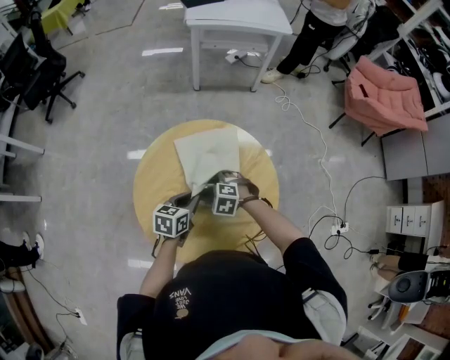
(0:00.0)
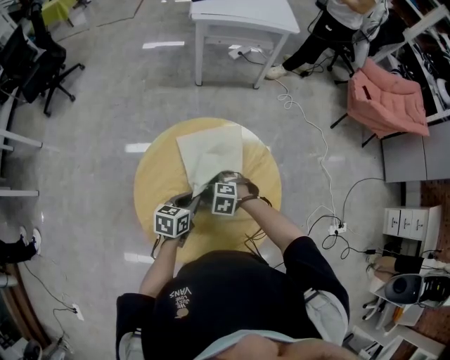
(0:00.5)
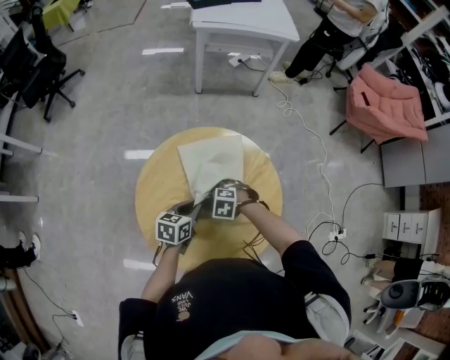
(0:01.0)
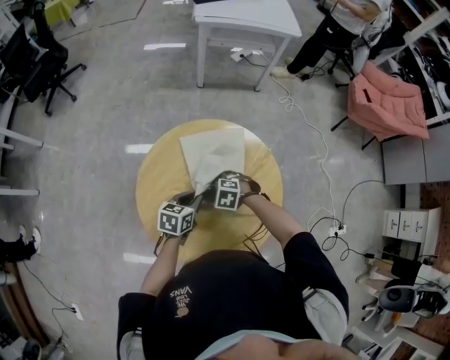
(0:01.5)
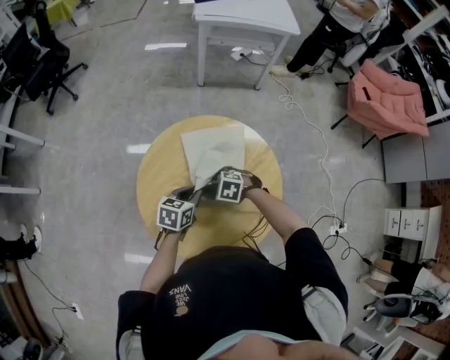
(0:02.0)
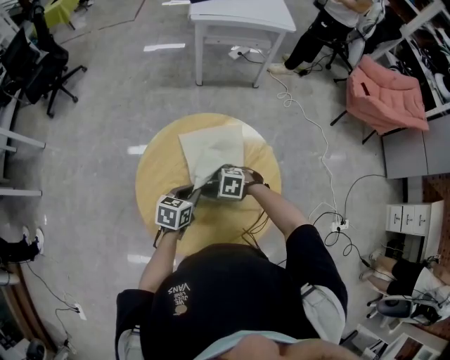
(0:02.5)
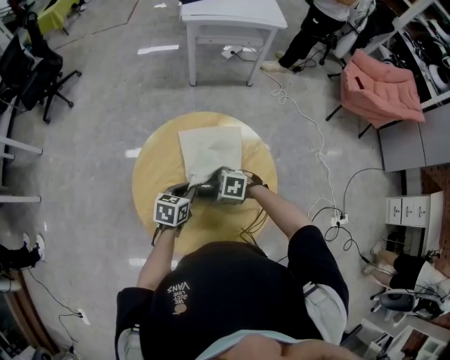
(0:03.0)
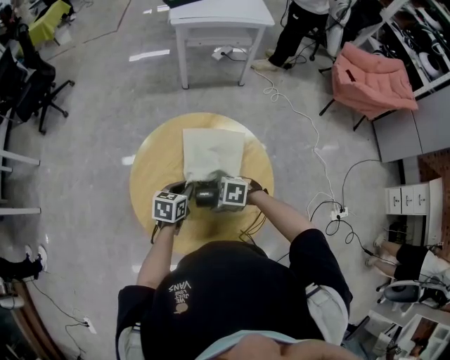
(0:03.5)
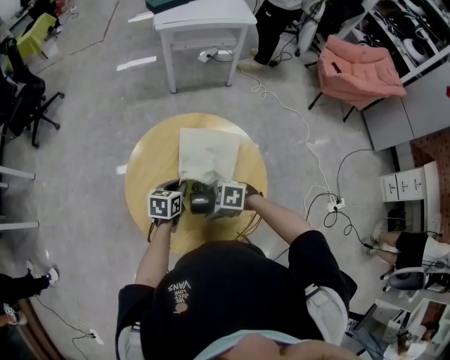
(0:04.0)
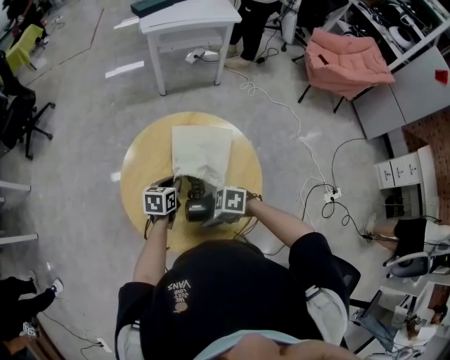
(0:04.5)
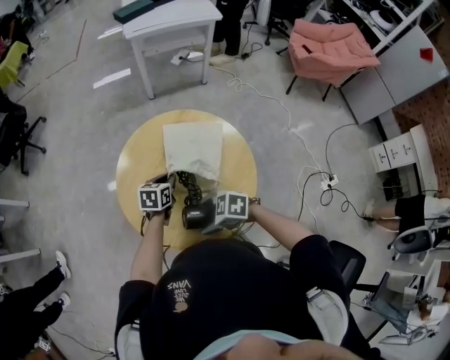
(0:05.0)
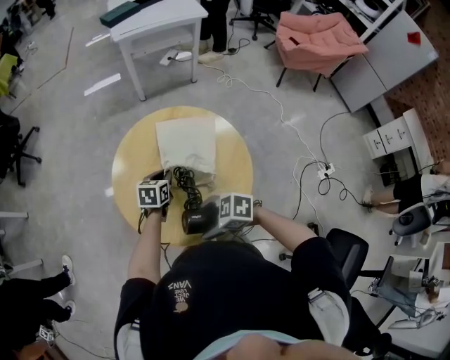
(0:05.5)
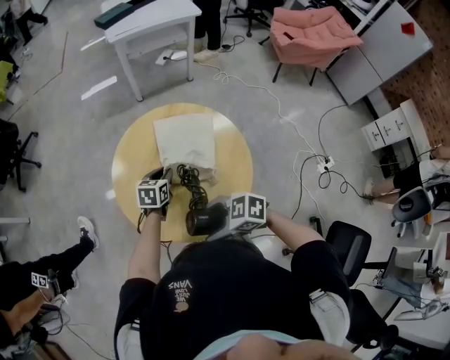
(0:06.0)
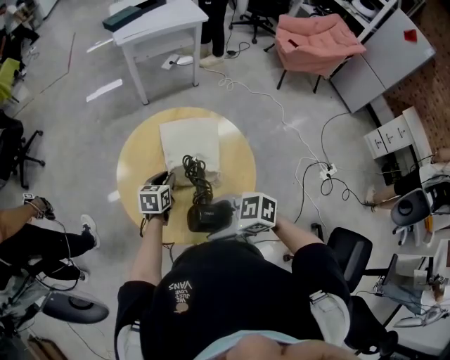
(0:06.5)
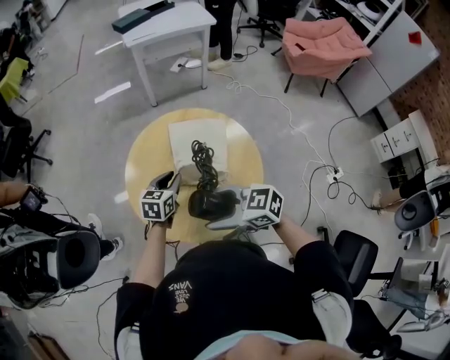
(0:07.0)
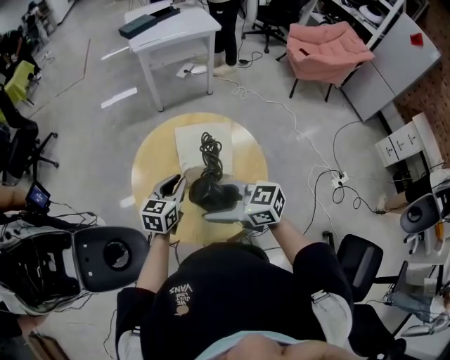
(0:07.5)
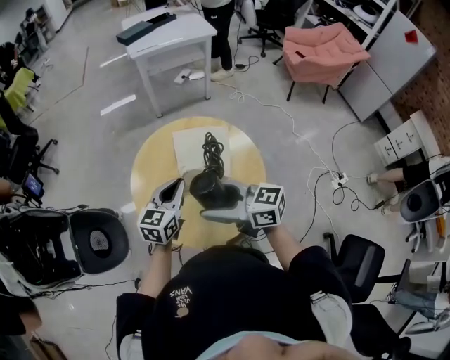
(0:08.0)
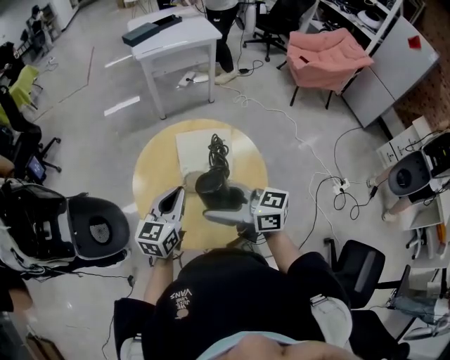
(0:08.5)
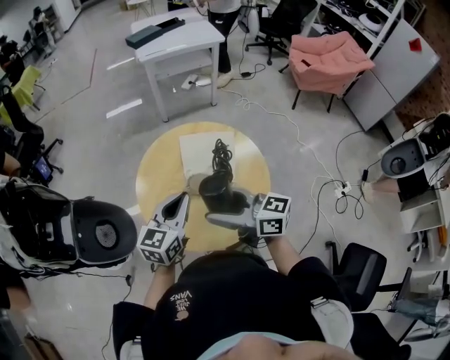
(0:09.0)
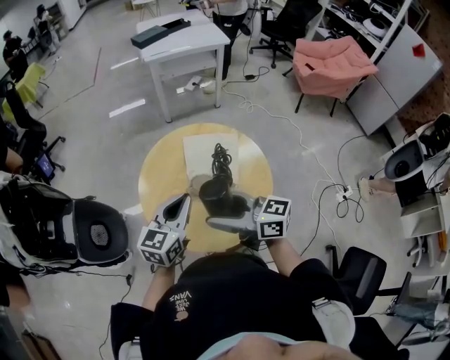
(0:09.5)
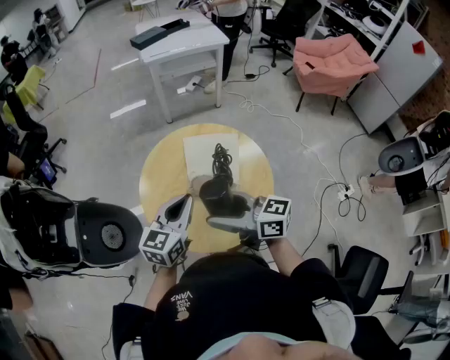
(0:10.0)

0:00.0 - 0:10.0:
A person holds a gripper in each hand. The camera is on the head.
0:00.0 - 0:02.0: The grippers move only a little.
0:02.0 - 0:04.0: The right gripper moves about 15 cm.
0:04.0 - 0:06.0: The right gripper shifts by some 20 cm, and changes its angle by about 30 degrees.
0:06.0 - 0:08.0: The grippers both shift upward by about 15 cm. The right gripper rotates roughly 40 degrees. The left gripper rotates some 30 degrees.
0:08.0 - 0:10.0: The left gripper changes place by roughly 5 cm.

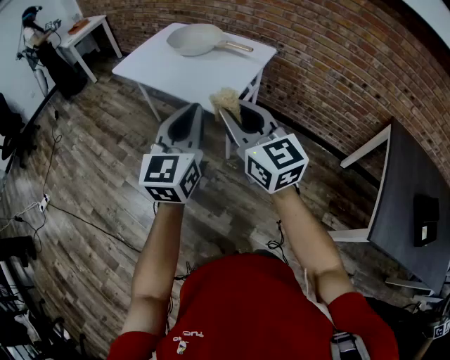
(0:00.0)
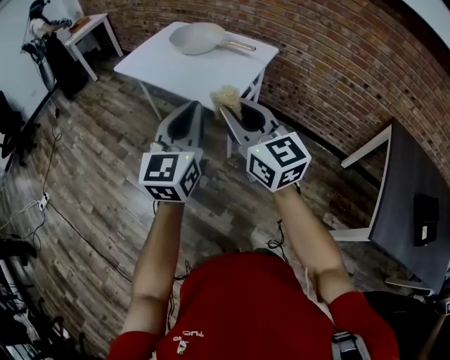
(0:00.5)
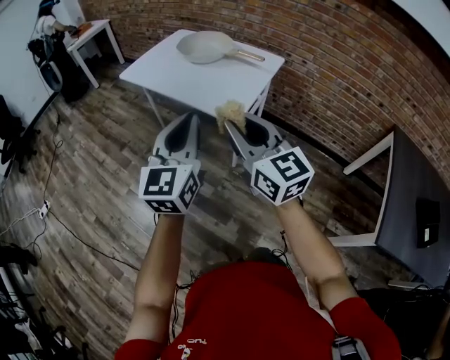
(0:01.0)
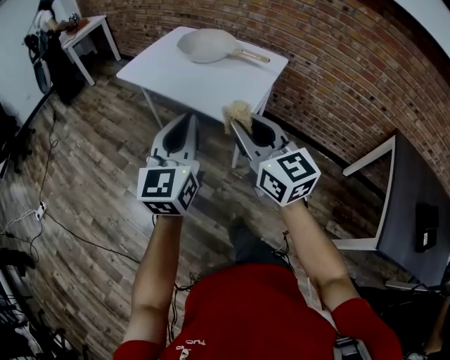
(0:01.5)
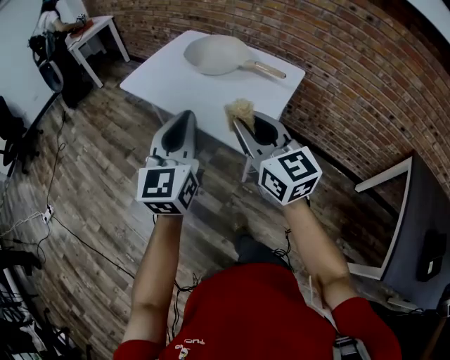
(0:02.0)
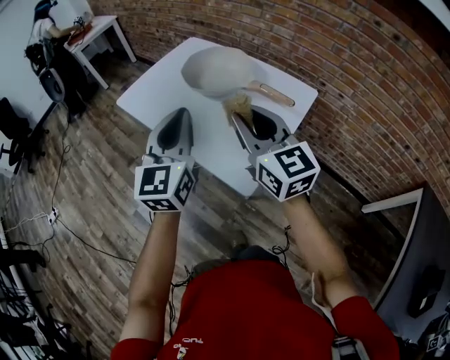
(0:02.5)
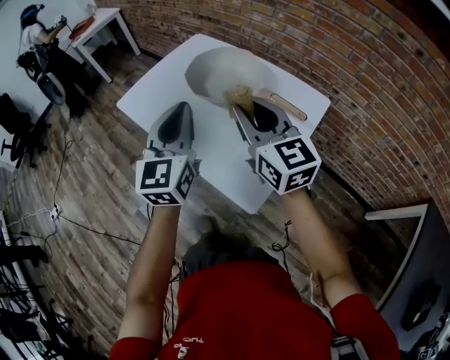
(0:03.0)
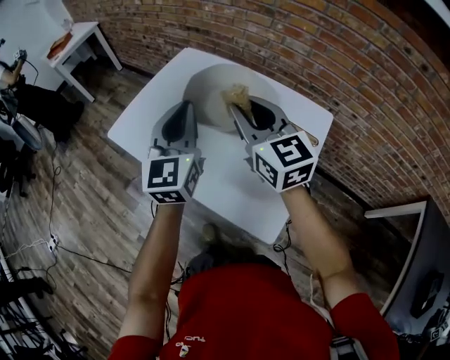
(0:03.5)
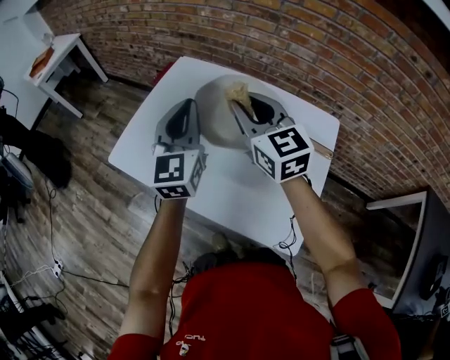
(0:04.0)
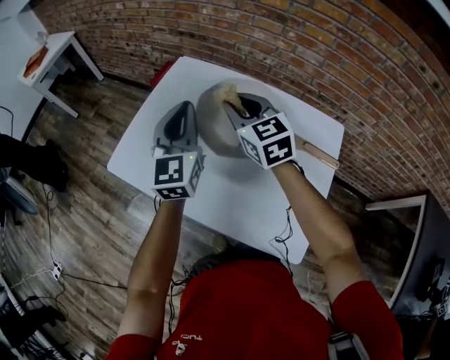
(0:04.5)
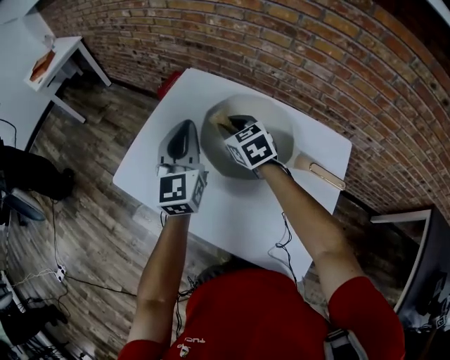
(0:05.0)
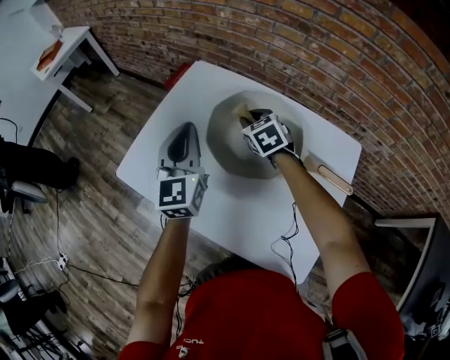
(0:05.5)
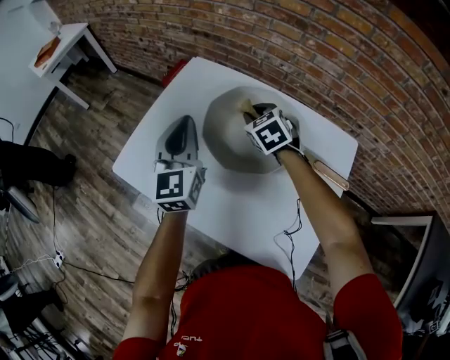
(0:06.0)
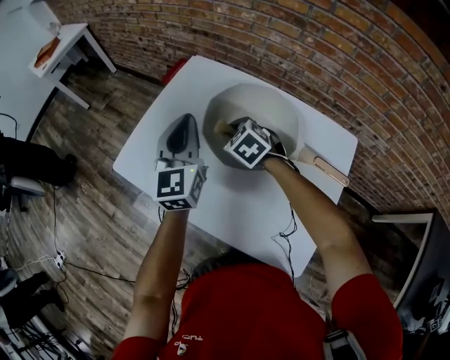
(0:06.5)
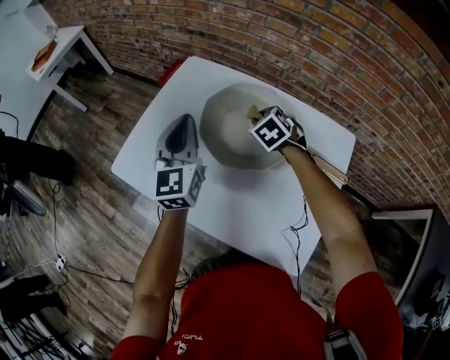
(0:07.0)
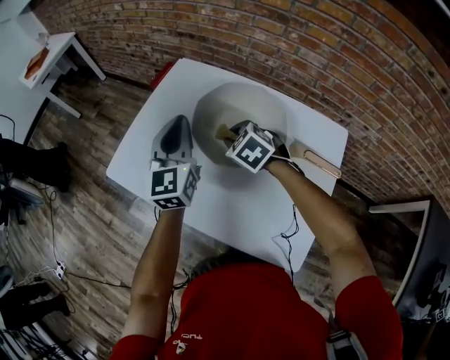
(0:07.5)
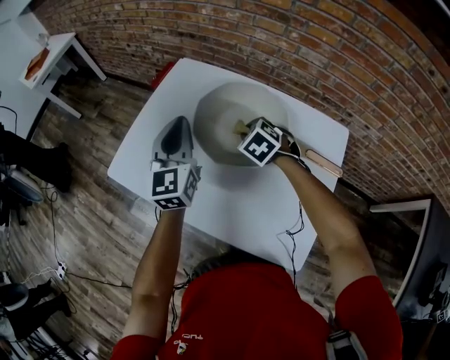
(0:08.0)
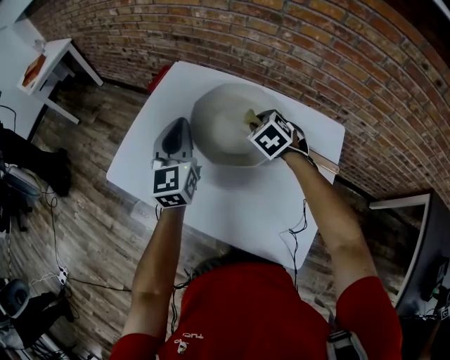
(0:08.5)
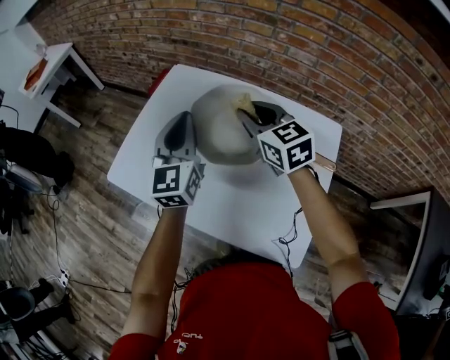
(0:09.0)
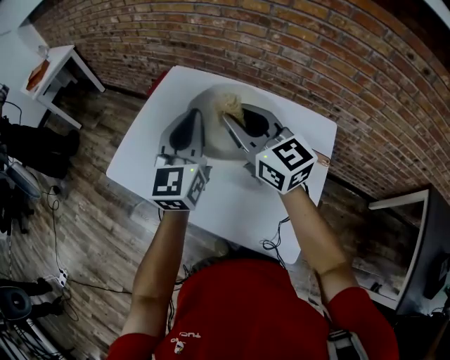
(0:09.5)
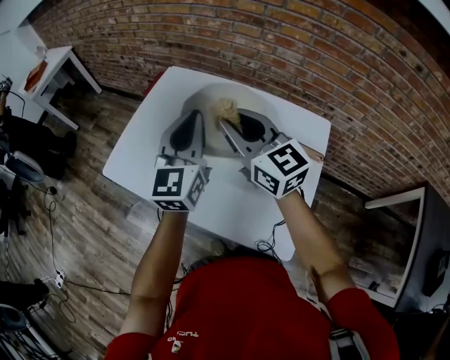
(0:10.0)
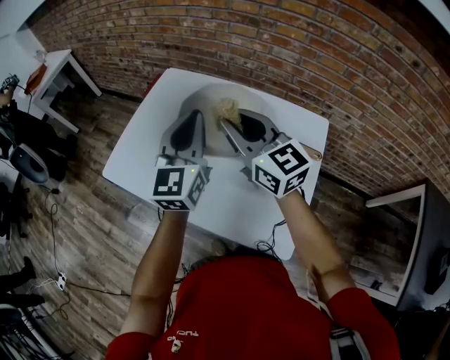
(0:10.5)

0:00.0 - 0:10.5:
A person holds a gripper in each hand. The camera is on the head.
0:00.0 - 0:02.0: The right gripper moves forward, approximately 20 cm. Meanwhile the left gripper shifts roughly 20 cm forward and to the left.
0:02.0 - 0:04.0: Both grippers are carried forward, approximately 50 cm.
0:04.0 - 0:06.5: The right gripper goes roughly 25 cm downward and forward, and tips its fingers downward by roughly 40 degrees; the left gripper shifts some 10 cm forward and downward.
0:06.5 - 0:08.5: The right gripper moves left and right over approximately 15 cm, changing direction 2 times.
0:08.5 - 0:10.5: The left gripper shifts about 15 cm backward, upward and to the right. The right gripper is displaced upward and backward by some 25 cm, and points its fingers about 50 degrees further upward.

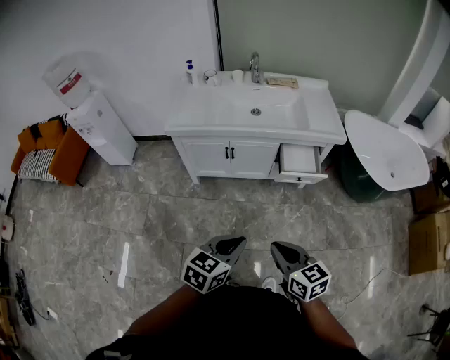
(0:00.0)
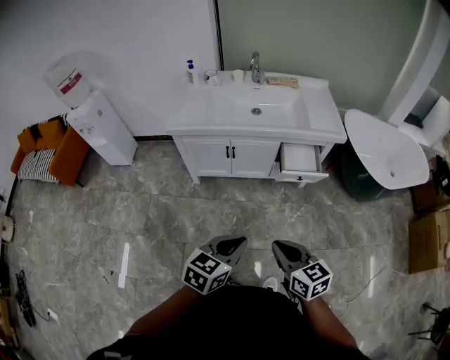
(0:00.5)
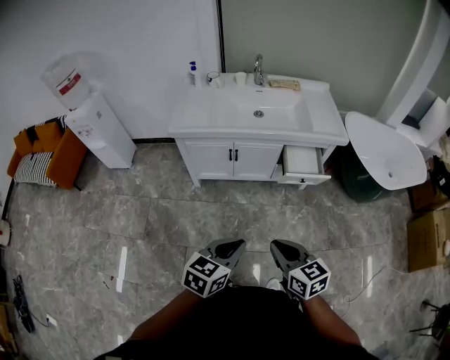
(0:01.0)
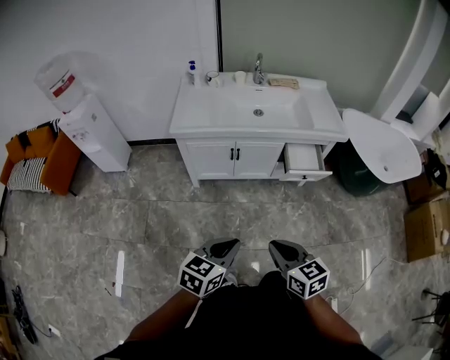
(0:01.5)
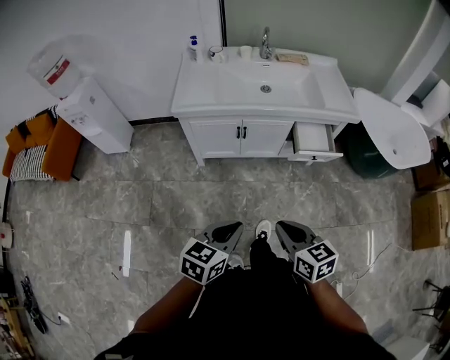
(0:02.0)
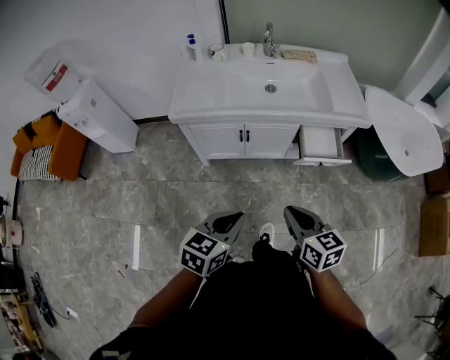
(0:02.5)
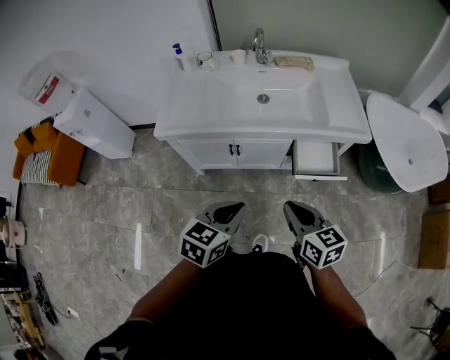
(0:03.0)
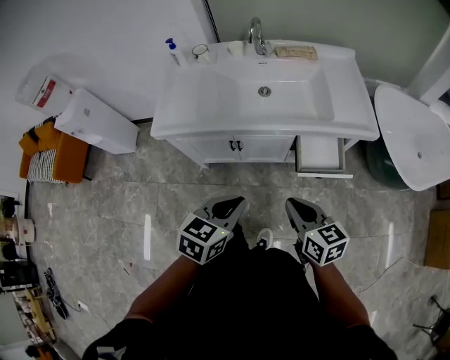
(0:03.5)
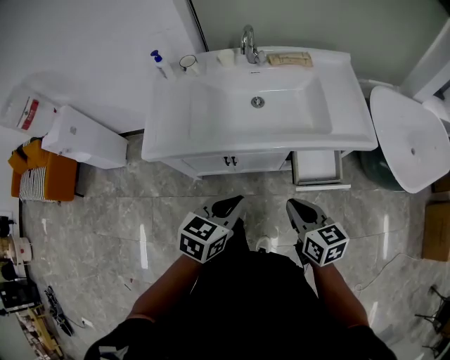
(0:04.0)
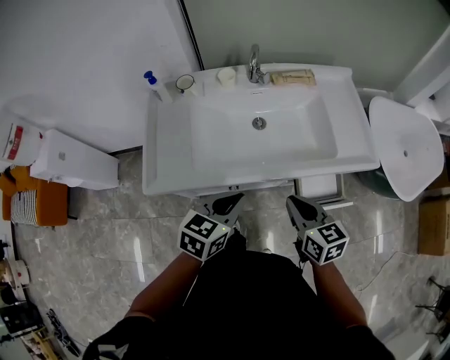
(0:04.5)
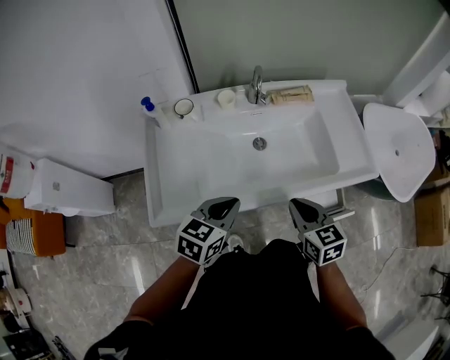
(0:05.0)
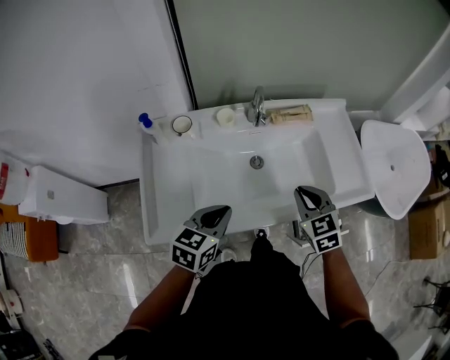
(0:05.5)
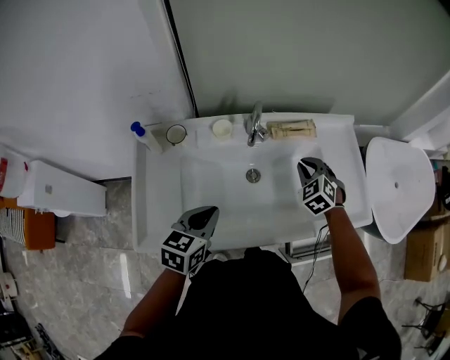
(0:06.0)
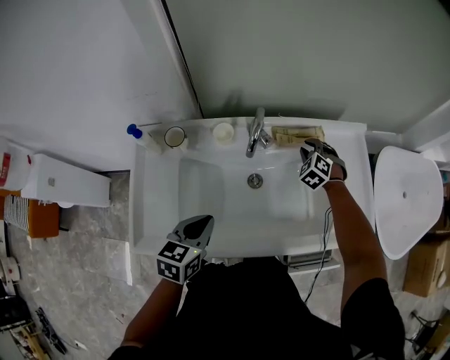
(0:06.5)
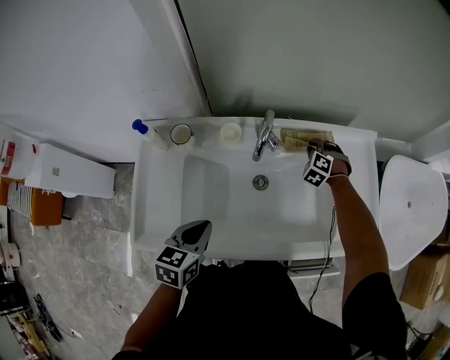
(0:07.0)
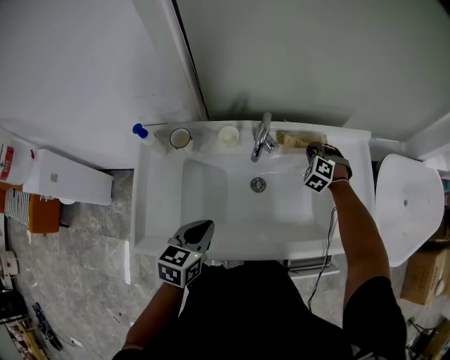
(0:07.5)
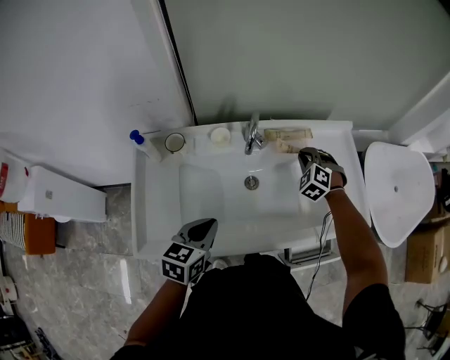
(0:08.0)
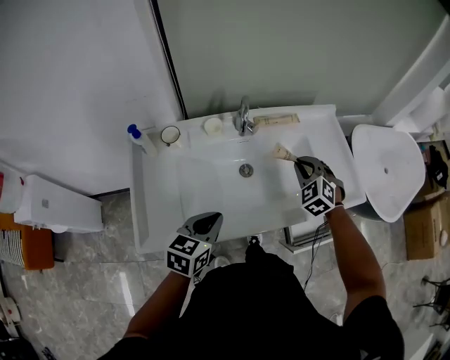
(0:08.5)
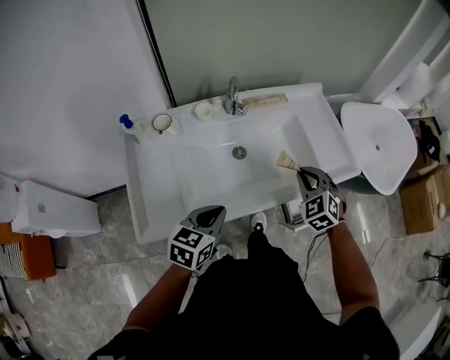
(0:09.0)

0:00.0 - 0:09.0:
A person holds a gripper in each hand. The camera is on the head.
0:00.0 - 0:02.0: Both grippers travel together to the left, some 10 cm.
0:02.0 - 0:04.5: Both grippers are carried forward, roughly 50 cm.
0:04.5 - 0:07.0: The right gripper heads forward, covering roughly 50 cm, and rotates around the line of its fingers by roughly 80 degrees, counterclockwise from behind, while the left gripper travels forward and to the left by about 20 cm, and turns by approximately 20 degrees.
0:07.0 - 0:09.0: The right gripper shifts roughly 35 cm backward and upward, and swivels some 40 degrees. The left gripper shifts approximately 10 cm backward and to the right, and swivels some 30 degrees.
